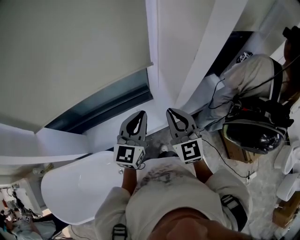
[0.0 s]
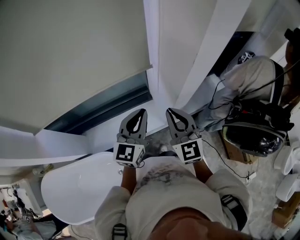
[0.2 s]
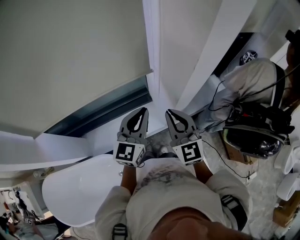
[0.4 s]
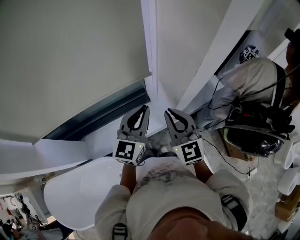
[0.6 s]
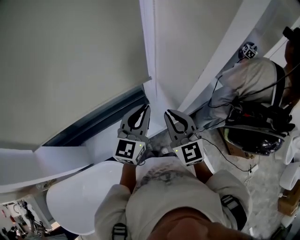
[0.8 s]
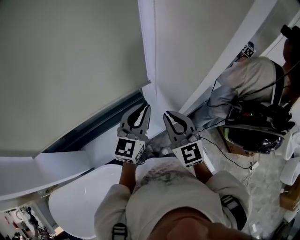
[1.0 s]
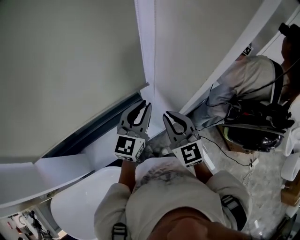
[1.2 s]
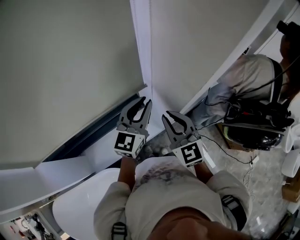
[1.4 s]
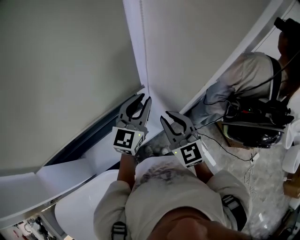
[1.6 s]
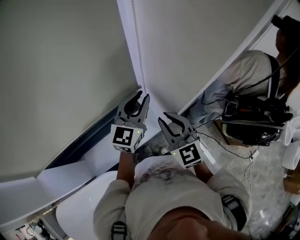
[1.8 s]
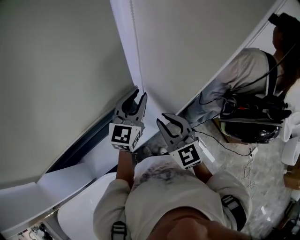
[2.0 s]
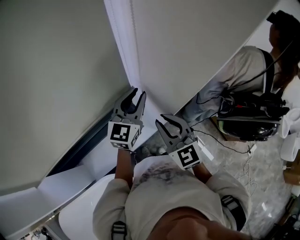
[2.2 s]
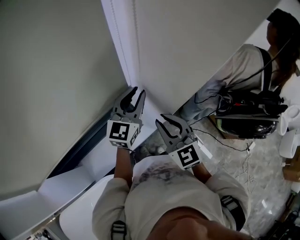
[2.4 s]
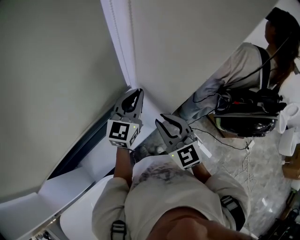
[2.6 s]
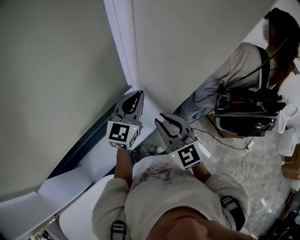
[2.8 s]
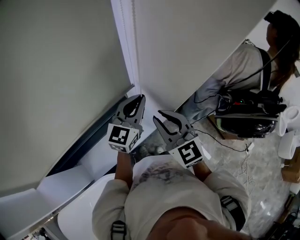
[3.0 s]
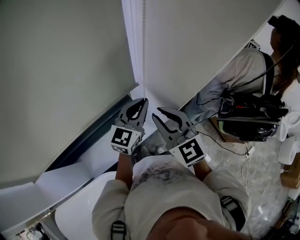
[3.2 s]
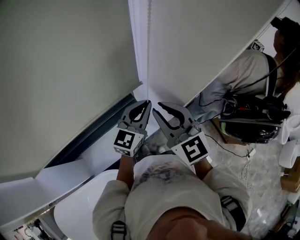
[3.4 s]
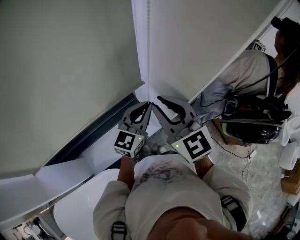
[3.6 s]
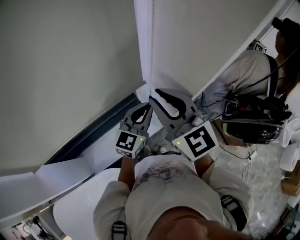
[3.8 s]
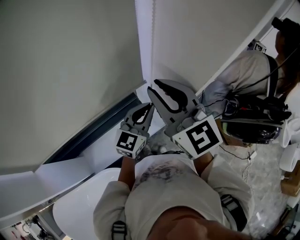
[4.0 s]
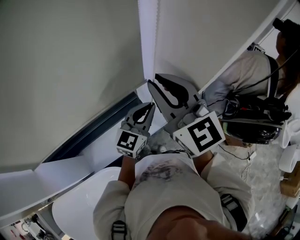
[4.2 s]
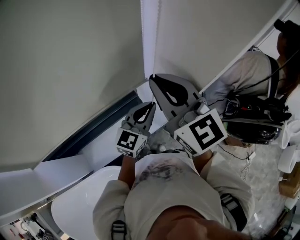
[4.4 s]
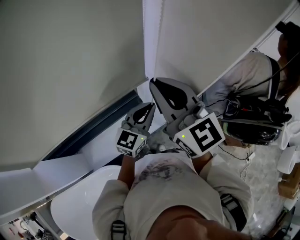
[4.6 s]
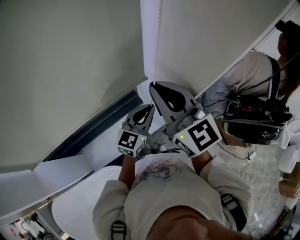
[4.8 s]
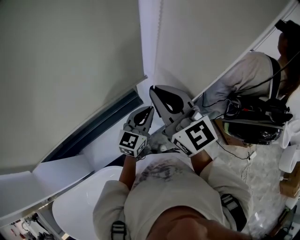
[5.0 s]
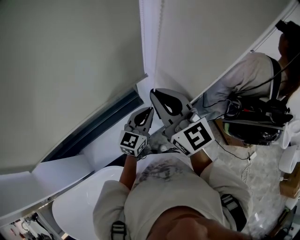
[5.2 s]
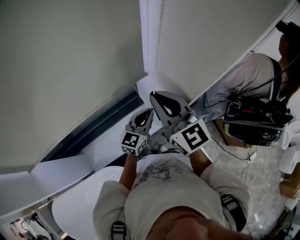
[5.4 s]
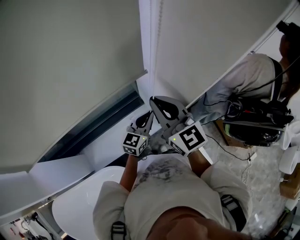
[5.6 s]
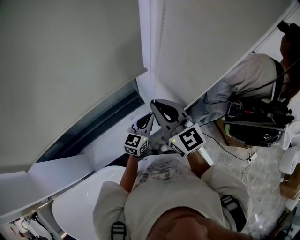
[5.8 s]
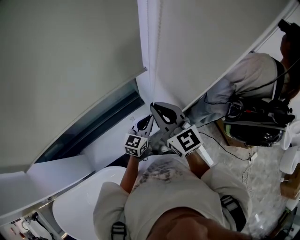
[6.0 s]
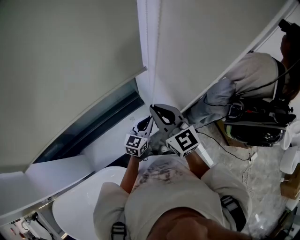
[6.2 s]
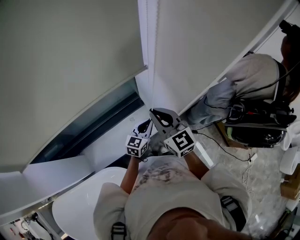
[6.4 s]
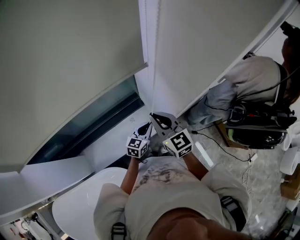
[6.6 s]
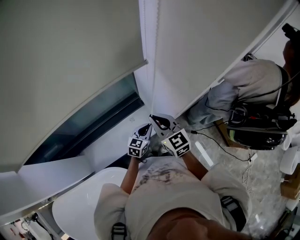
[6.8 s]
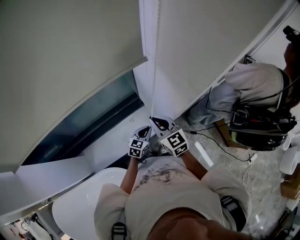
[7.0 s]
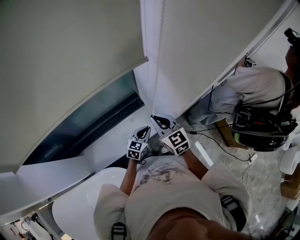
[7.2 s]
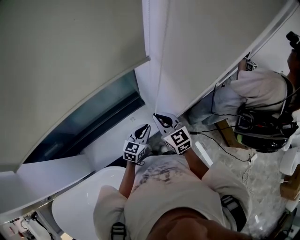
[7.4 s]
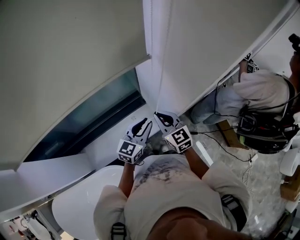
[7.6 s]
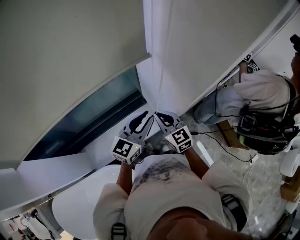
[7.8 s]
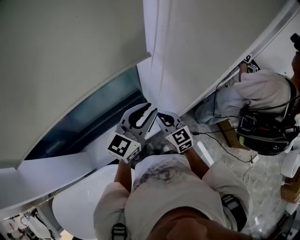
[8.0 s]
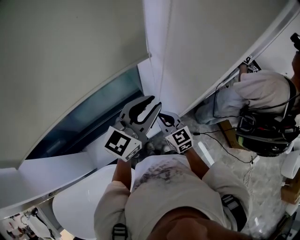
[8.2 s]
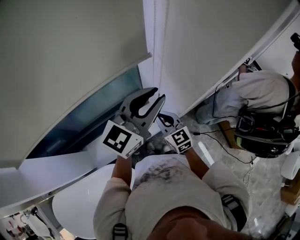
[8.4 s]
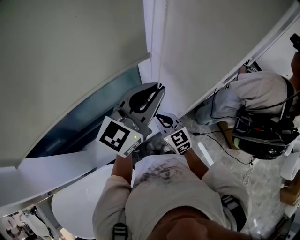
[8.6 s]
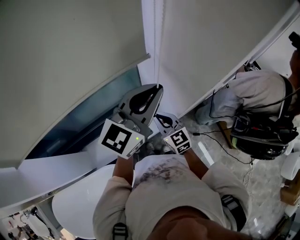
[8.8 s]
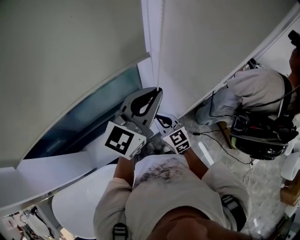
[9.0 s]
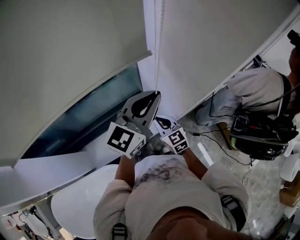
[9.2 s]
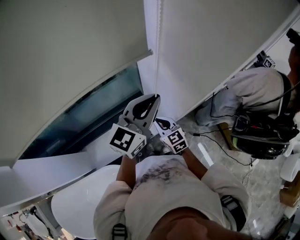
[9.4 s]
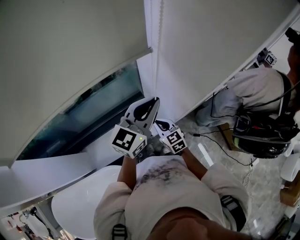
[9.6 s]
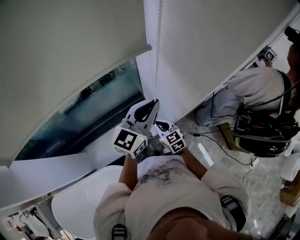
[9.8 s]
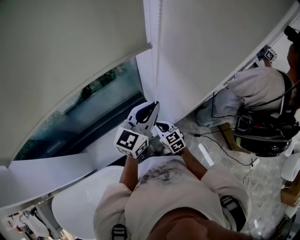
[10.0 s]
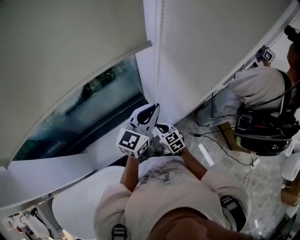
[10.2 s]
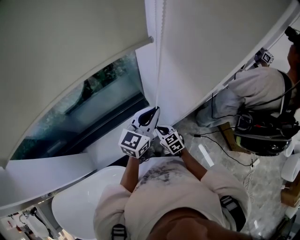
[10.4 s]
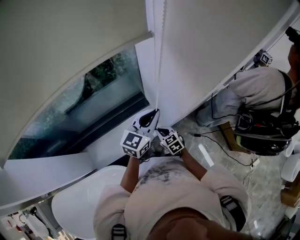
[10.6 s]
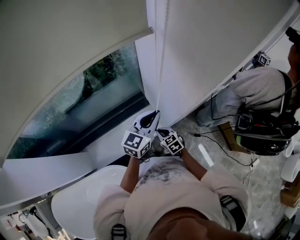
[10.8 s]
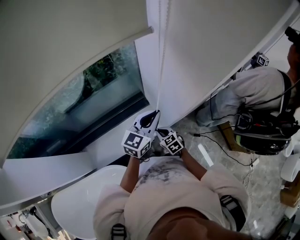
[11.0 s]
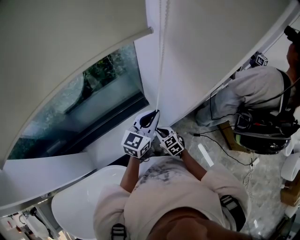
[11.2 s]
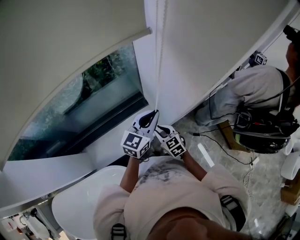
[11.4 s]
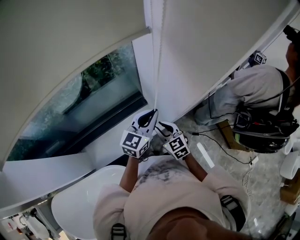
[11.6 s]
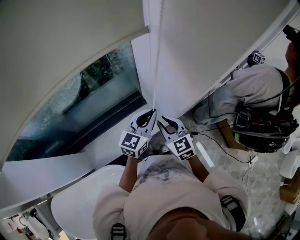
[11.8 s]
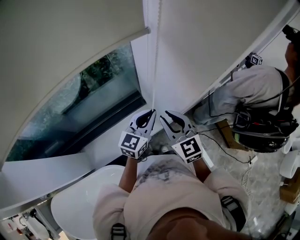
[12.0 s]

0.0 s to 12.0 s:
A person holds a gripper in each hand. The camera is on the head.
0.0 to 1.6 s: The right gripper heads forward, covering approximately 10 cm, while the left gripper is displaced forward by approximately 15 cm.
1.6 to 3.0 s: The grippers move only a little.
3.0 to 4.4 s: The right gripper heads upward, covering some 15 cm.
4.4 to 6.0 s: The grippers both shift downward by about 15 cm.
6.0 to 7.6 s: The right gripper travels downward by approximately 20 cm. Meanwhile the left gripper travels to the left by about 5 cm, and goes downward and returns, approximately 15 cm each way.
7.6 to 9.0 s: The left gripper goes some 25 cm upward, and rotates roughly 20 degrees.
9.0 to 10.4 s: Both grippers move downward, some 15 cm.
10.4 to 12.0 s: The right gripper is displaced upward by approximately 25 cm, and turns by roughly 20 degrees.

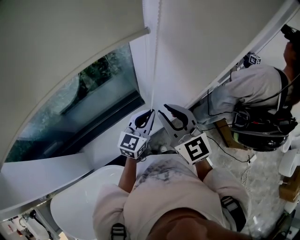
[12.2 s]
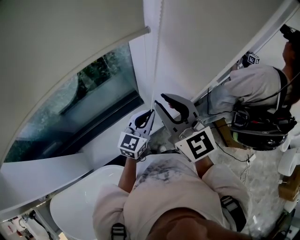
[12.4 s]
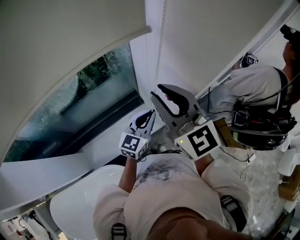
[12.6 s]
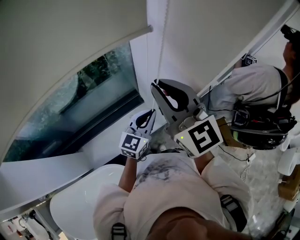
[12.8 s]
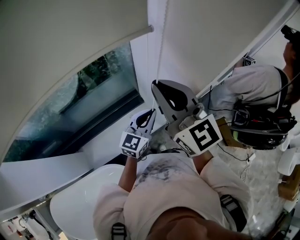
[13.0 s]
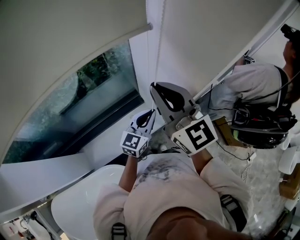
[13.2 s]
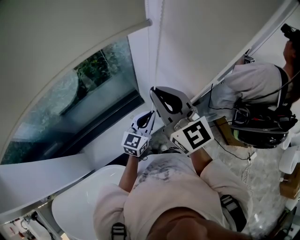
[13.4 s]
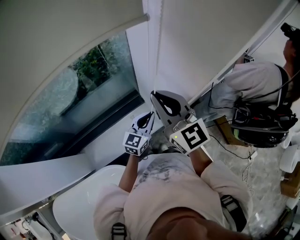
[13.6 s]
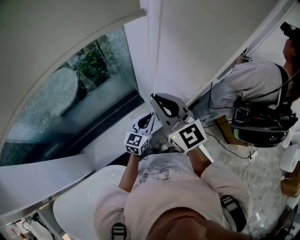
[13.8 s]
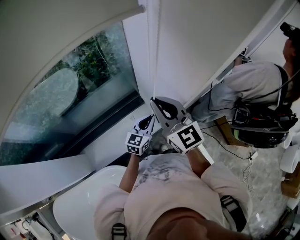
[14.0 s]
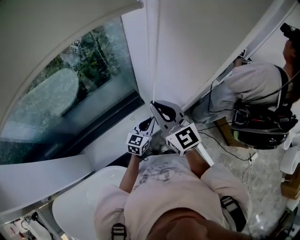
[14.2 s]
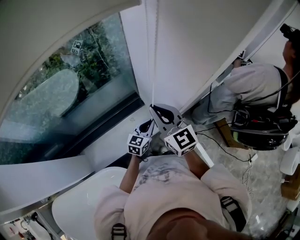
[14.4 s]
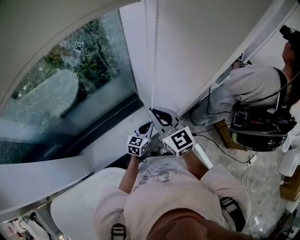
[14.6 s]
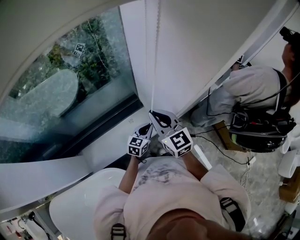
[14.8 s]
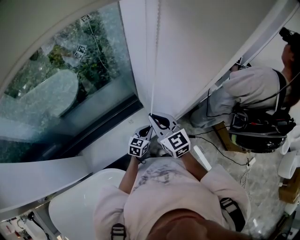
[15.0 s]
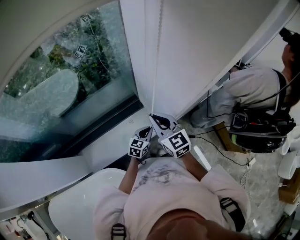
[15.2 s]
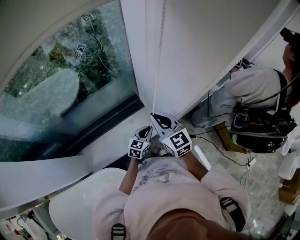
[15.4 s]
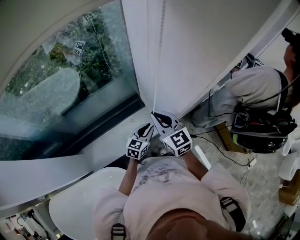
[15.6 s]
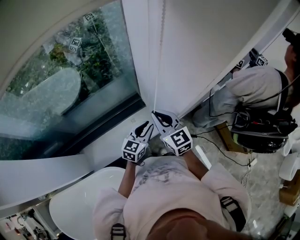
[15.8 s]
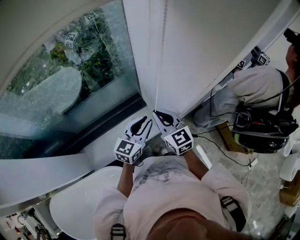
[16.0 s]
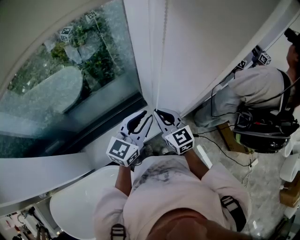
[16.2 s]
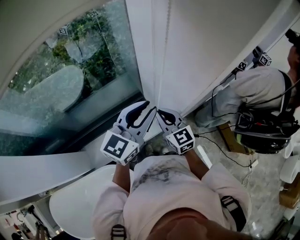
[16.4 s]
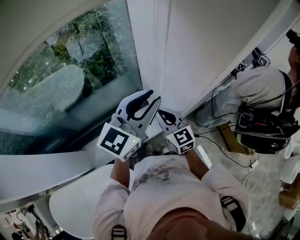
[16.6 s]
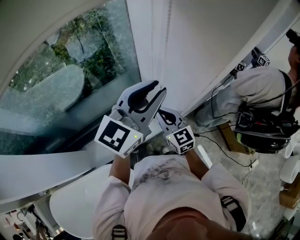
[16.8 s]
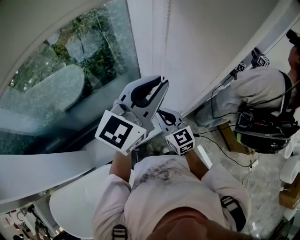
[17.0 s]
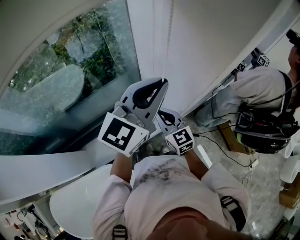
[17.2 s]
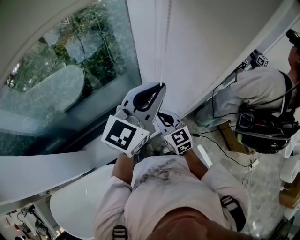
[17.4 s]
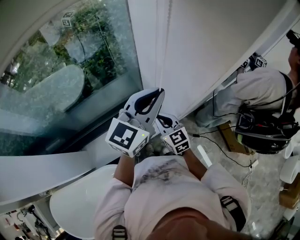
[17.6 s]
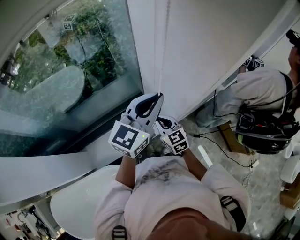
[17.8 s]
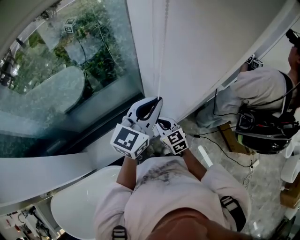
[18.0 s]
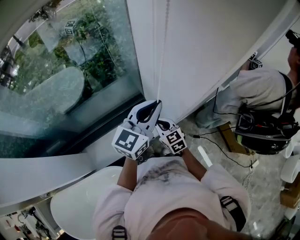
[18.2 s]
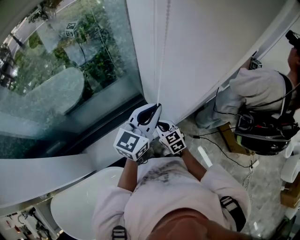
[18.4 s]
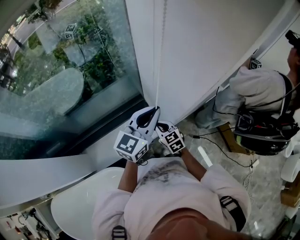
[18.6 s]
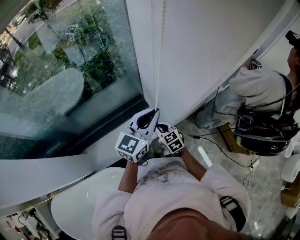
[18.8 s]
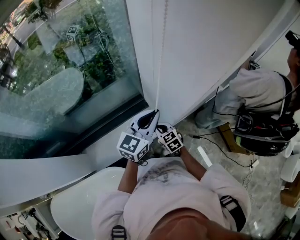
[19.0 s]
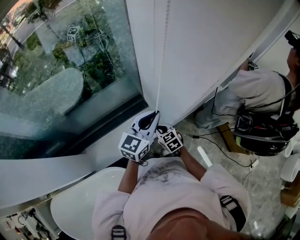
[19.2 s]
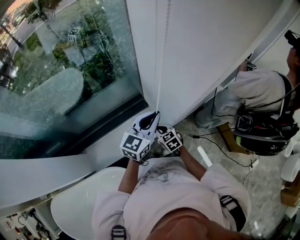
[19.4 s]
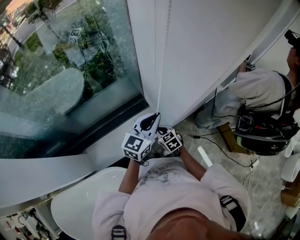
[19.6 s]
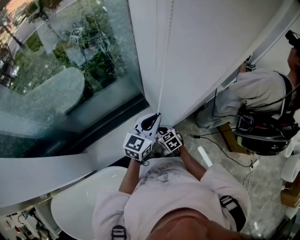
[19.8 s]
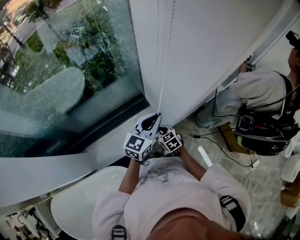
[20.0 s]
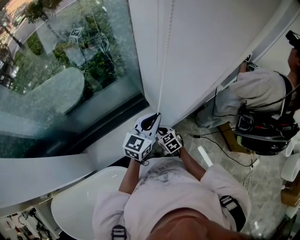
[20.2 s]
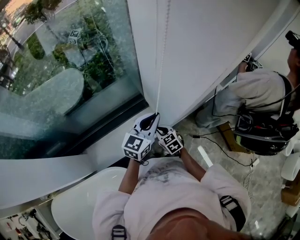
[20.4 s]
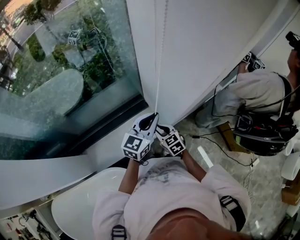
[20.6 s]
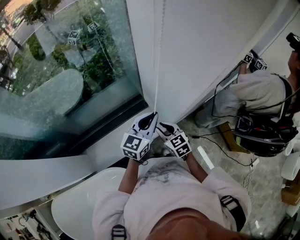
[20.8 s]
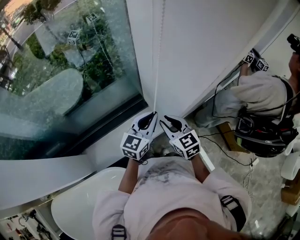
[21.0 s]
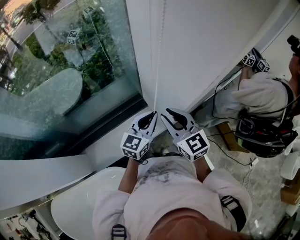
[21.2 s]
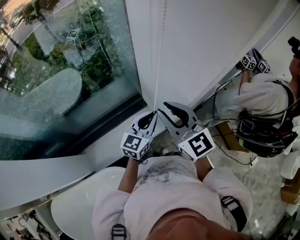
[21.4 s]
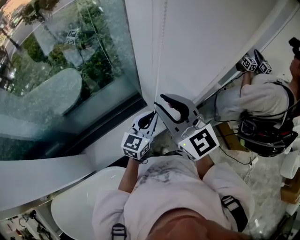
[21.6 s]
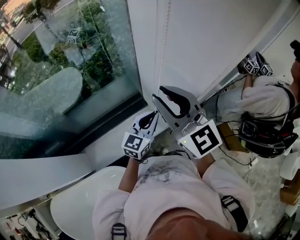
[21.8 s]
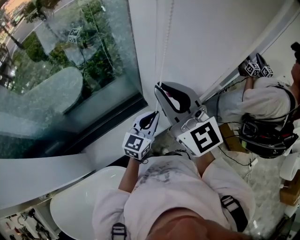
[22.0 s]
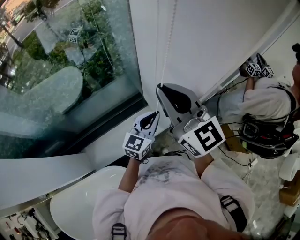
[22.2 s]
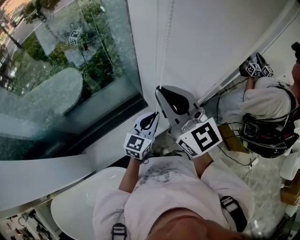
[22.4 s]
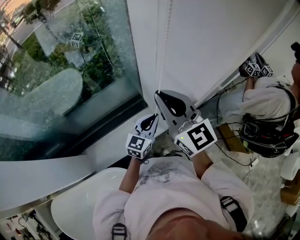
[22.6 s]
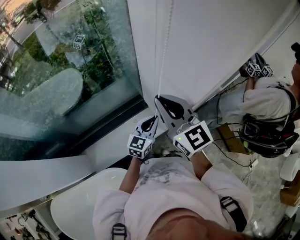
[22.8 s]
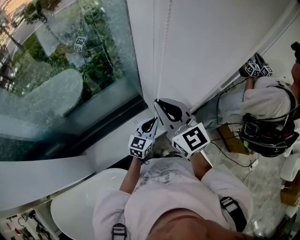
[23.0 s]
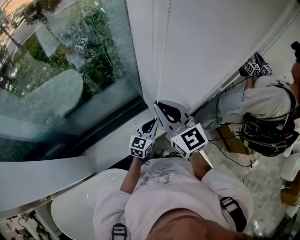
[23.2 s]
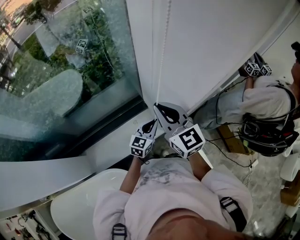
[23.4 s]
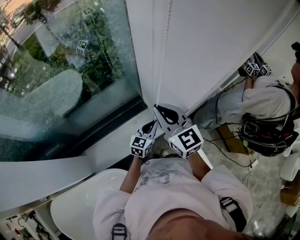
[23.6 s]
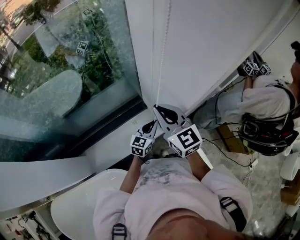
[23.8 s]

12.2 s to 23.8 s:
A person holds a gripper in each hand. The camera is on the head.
12.2 to 13.6 s: The left gripper shifts approximately 5 cm downward. The right gripper goes upward and returns, some 10 cm each way.
13.6 to 15.0 s: The two grippers go approximately 15 cm downward.
15.0 to 16.6 s: The left gripper goes approximately 40 cm upward, and rotates about 30 degrees.
16.6 to 18.0 s: The left gripper shifts by some 5 cm; the right gripper travels downward by some 10 cm.
18.0 to 19.4 s: The grippers both shift downward by some 10 cm.
19.4 to 21.0 s: The right gripper shifts about 15 cm upward, and opens.
21.0 to 22.4 s: The right gripper shifts about 25 cm upward, swivels about 30 degrees, and closes its fingers.
22.4 to 23.8 s: Both grippers travel together downward, some 10 cm.
